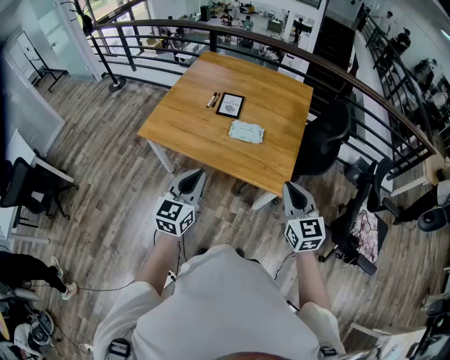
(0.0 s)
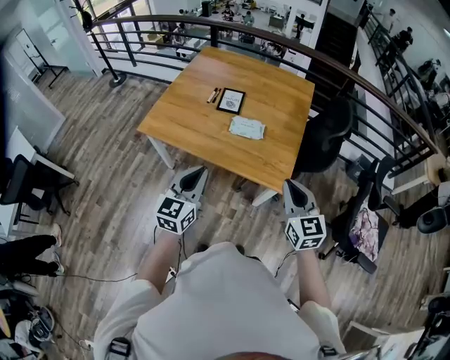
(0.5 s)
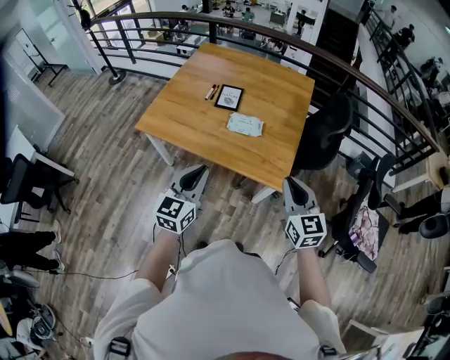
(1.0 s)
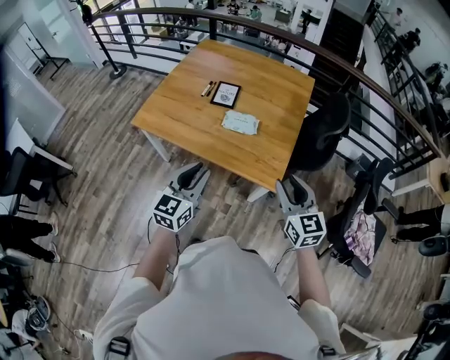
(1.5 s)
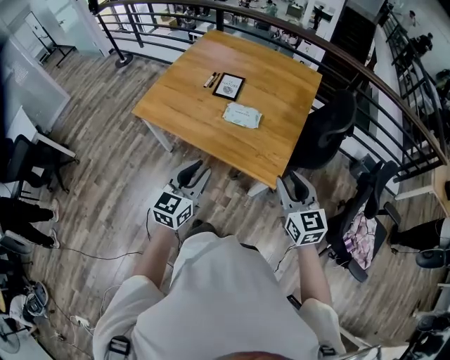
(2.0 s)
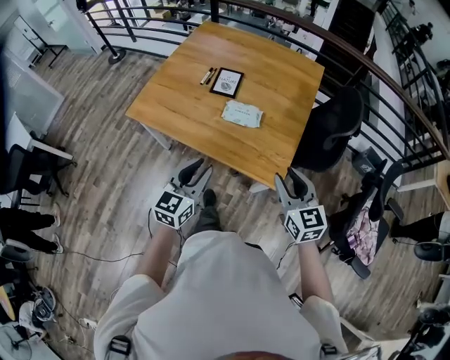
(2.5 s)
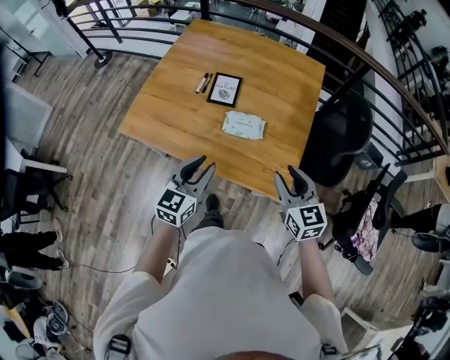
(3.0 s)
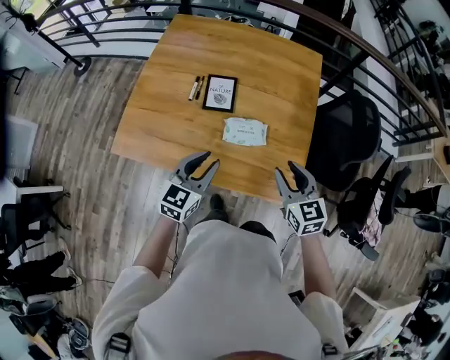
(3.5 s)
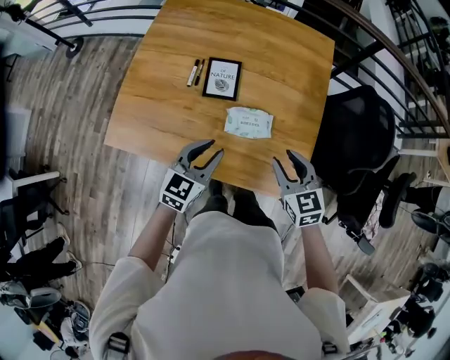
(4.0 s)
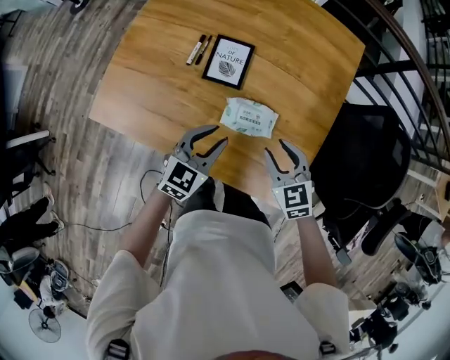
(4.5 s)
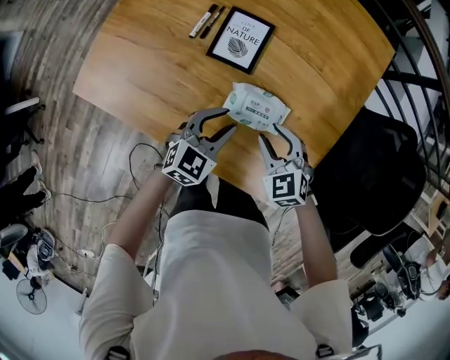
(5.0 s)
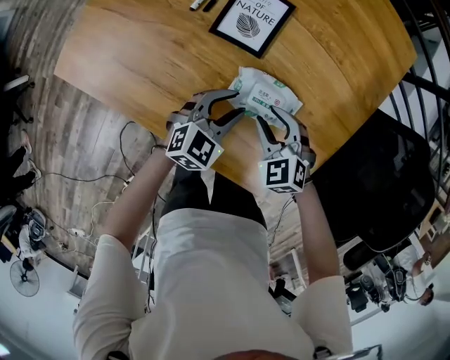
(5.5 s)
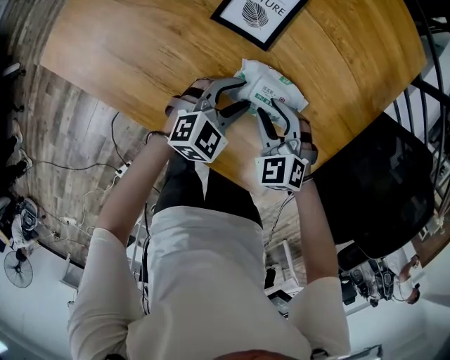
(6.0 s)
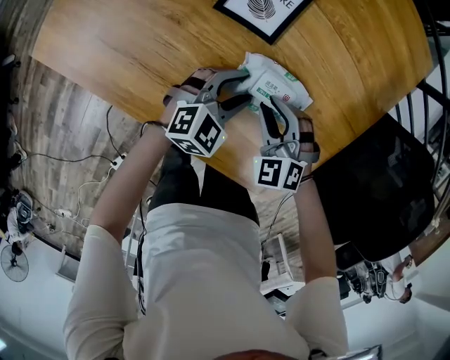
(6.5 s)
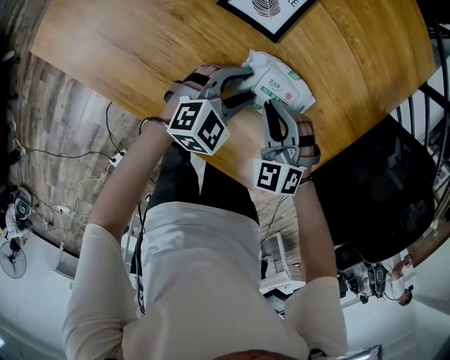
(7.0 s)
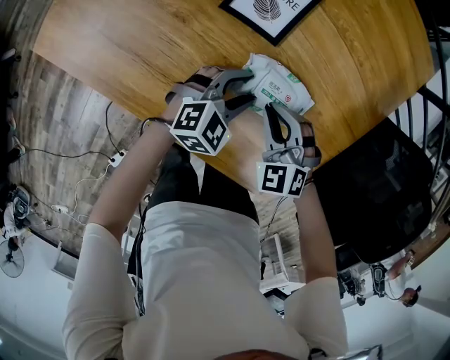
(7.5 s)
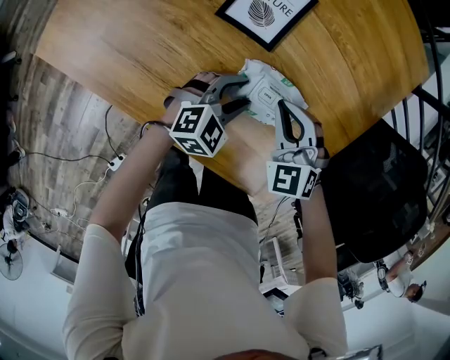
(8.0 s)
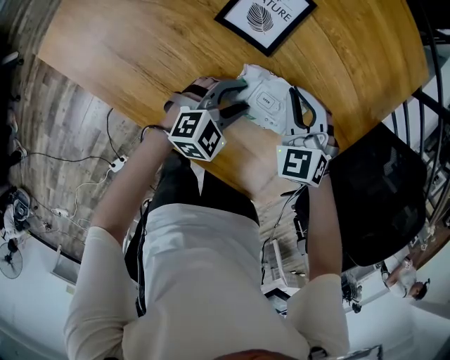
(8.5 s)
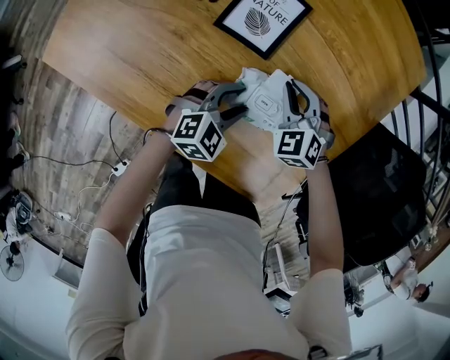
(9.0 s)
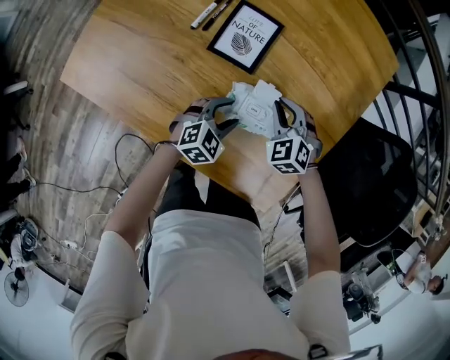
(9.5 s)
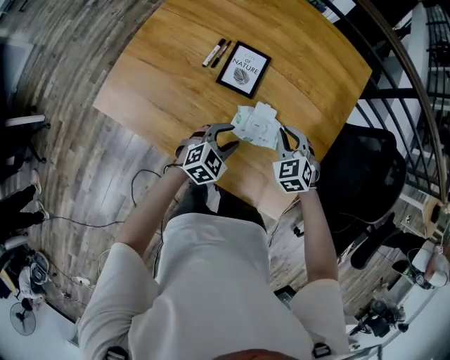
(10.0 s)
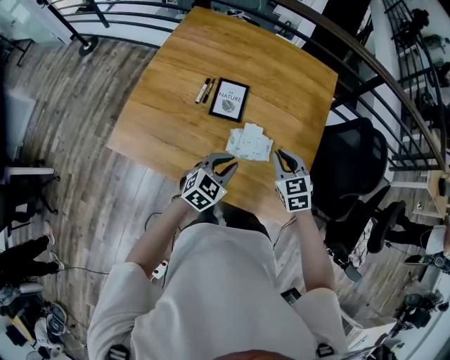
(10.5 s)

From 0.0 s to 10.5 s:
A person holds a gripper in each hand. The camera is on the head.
From 0.0 s to 2.0 s: Both grippers travel together to the right, approximately 10 cm. The right gripper opens its fingers. Meanwhile the left gripper opens its fingers.
From 2.0 s to 4.0 s: The left gripper travels forward by some 30 cm, and changes its angle by approximately 20 degrees, while the right gripper heads forward and to the left, covering some 30 cm.
From 4.0 s to 6.5 s: The two grippers go some 30 cm downward. The right gripper rolls counterclockwise, seen from behind, by approximately 50 degrees.
From 6.5 s to 8.5 s: The right gripper shifts approximately 10 cm forward, and closes its fingers.
From 8.5 s to 10.5 s: Both grippers move upward and backward, some 25 cm. The left gripper closes up; the right gripper changes its angle by about 40 degrees.

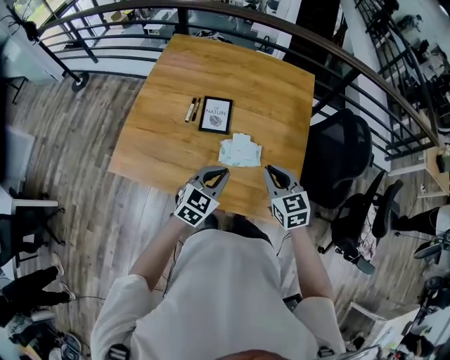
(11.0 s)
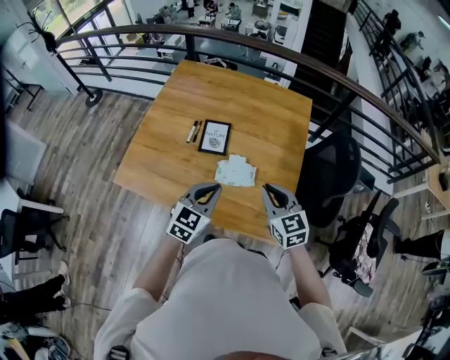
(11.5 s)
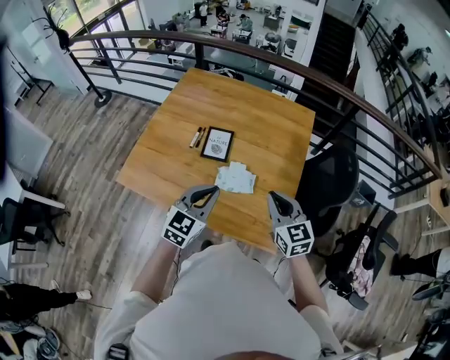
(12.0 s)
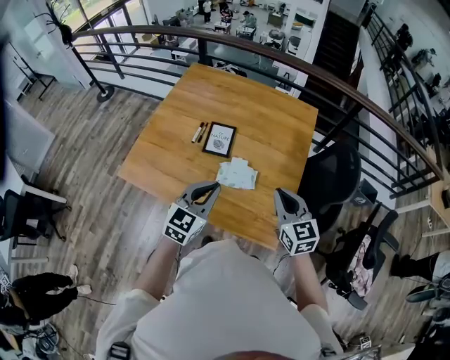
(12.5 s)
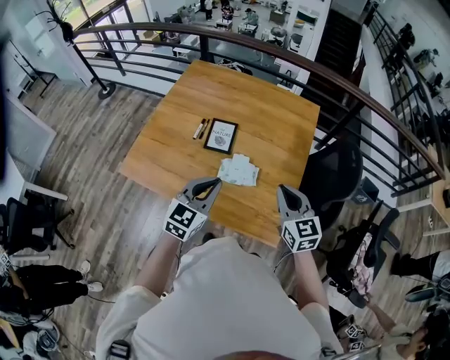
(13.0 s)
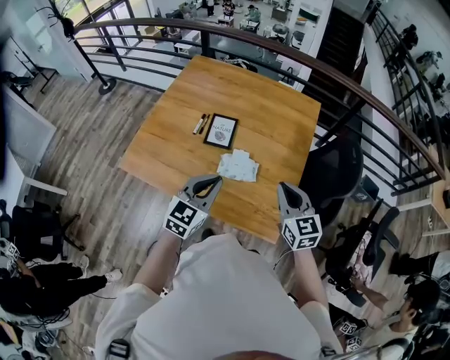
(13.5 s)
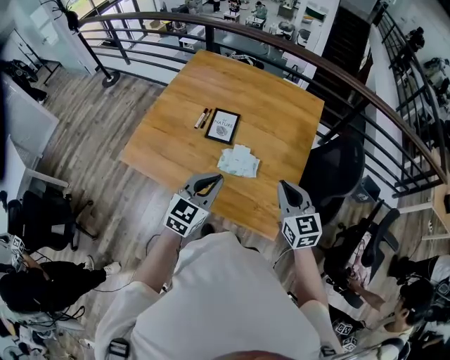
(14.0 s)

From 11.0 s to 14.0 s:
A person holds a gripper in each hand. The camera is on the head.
From 11.0 s to 12.5 s: The left gripper heads upward, covering about 10 cm; the right gripper goes roughly 10 cm to the right and upward.
From 12.5 s to 14.0 s: The grippers make only small movements.

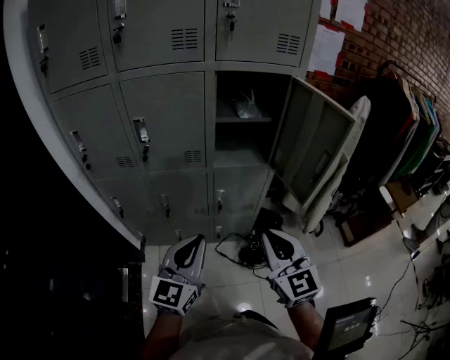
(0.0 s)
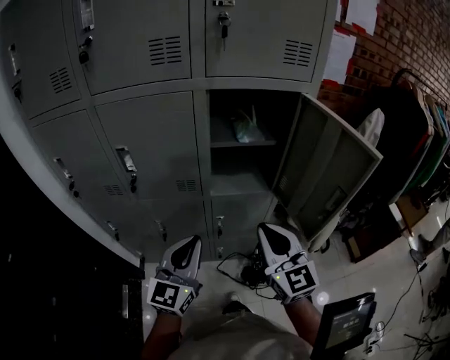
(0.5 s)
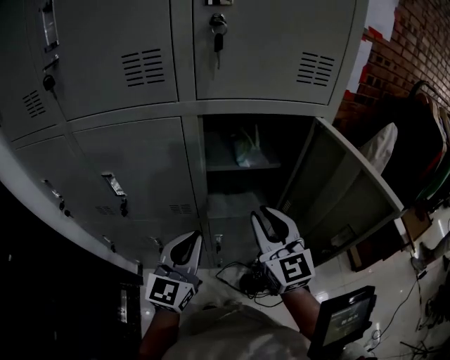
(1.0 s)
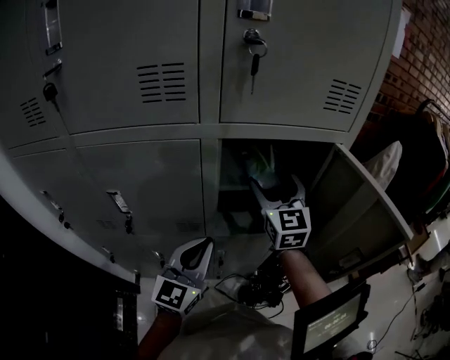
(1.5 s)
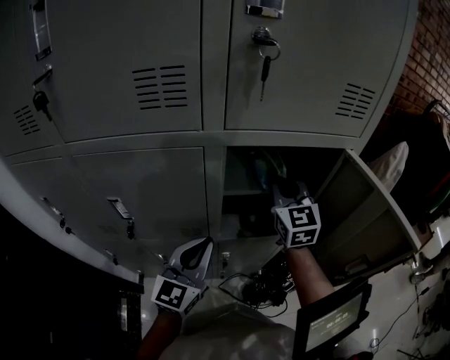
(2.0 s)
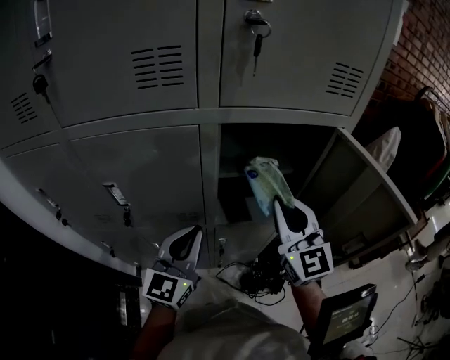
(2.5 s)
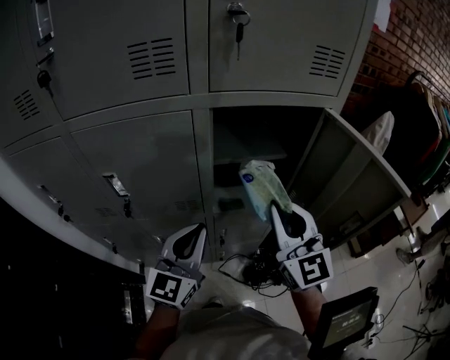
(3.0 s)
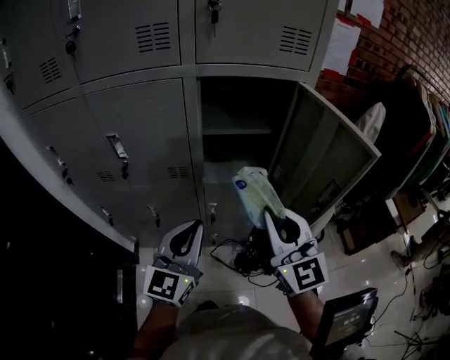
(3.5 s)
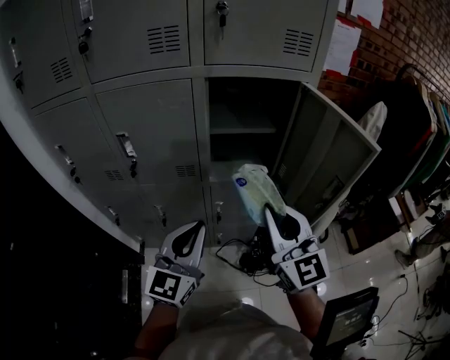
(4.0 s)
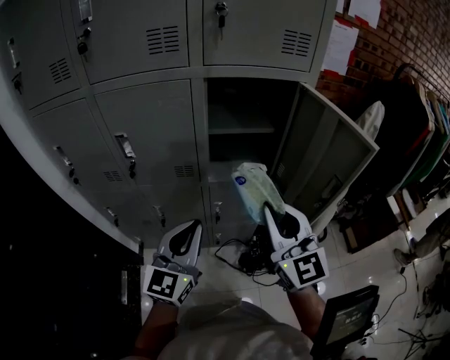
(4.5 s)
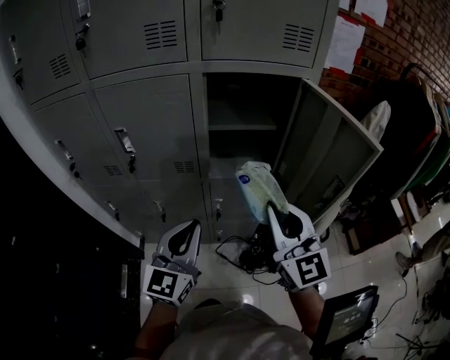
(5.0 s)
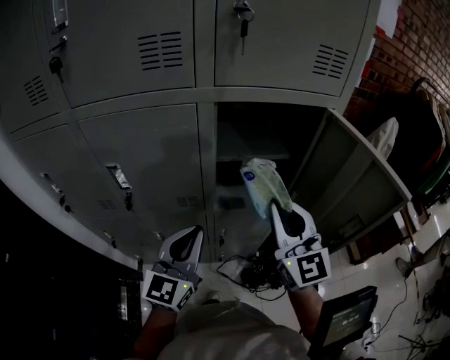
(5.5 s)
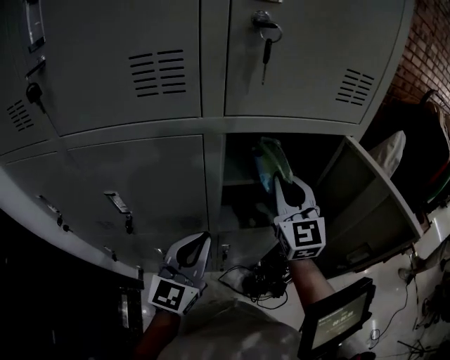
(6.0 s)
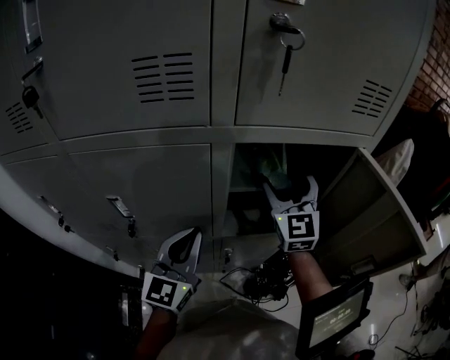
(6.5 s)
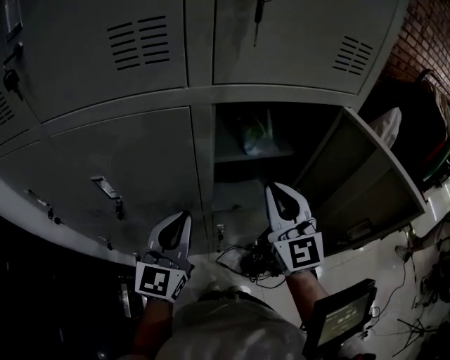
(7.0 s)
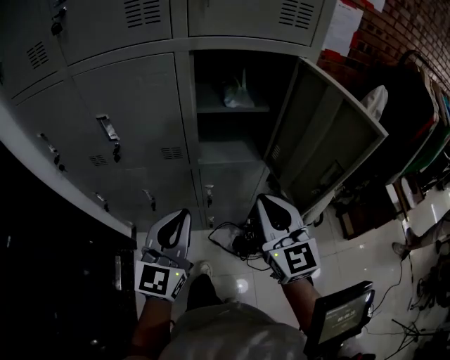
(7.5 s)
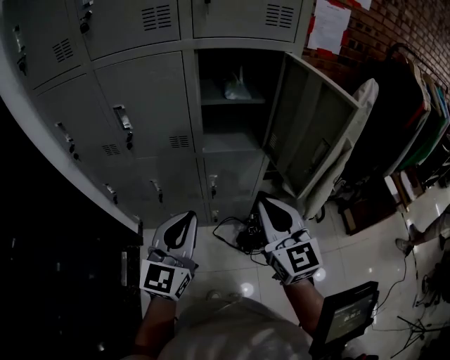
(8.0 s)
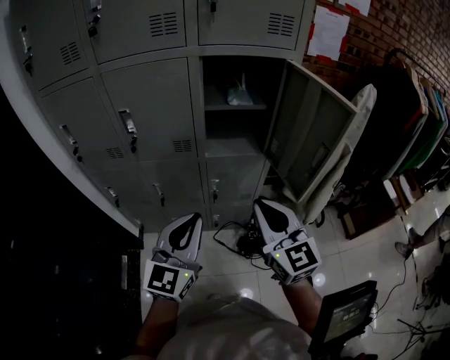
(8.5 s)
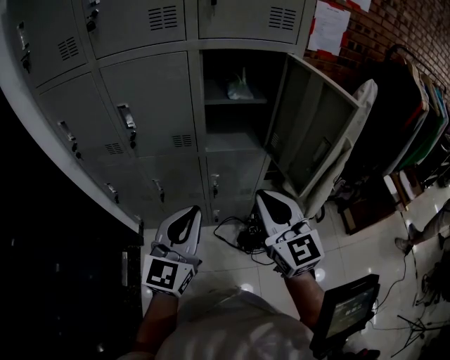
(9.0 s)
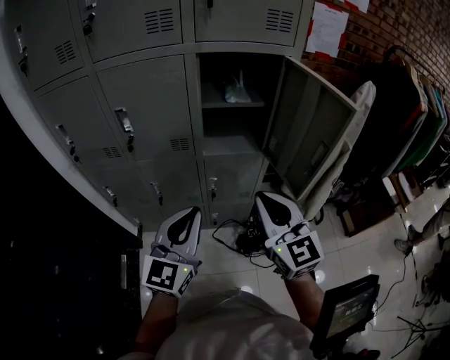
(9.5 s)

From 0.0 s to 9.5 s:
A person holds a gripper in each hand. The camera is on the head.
From 0.0 s to 2.0 s: The two grippers go some 40 cm forward. The right gripper opens, then closes once more.
From 2.0 s to 4.0 s: The right gripper goes roughly 30 cm backward; the left gripper heads backward, covering approximately 20 cm.
From 4.0 s to 5.5 s: The two grippers go approximately 10 cm forward.
From 5.5 s to 7.5 s: The left gripper shifts some 10 cm backward. Meanwhile the right gripper moves downward, approximately 5 cm, moves some 20 cm forward and comes back, and opens and closes again.
From 7.5 s to 9.5 s: Both grippers move backward, approximately 10 cm.

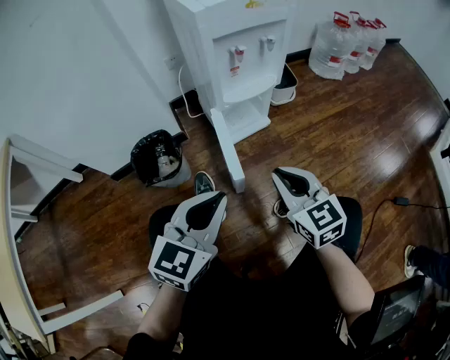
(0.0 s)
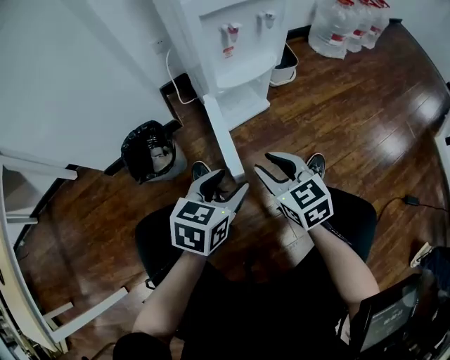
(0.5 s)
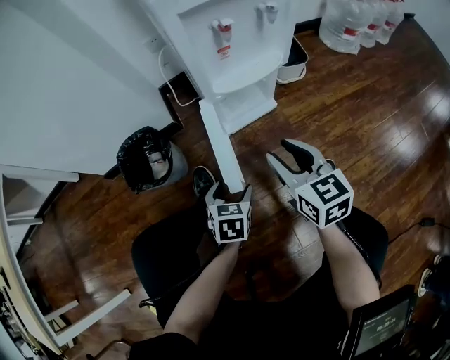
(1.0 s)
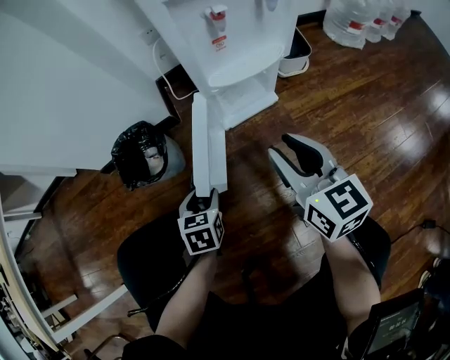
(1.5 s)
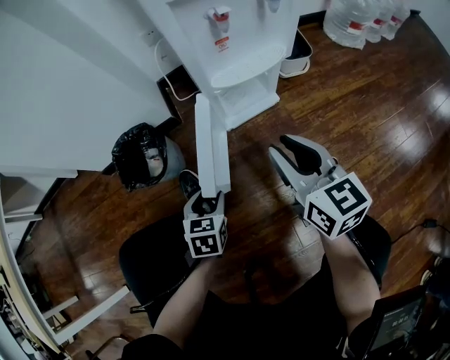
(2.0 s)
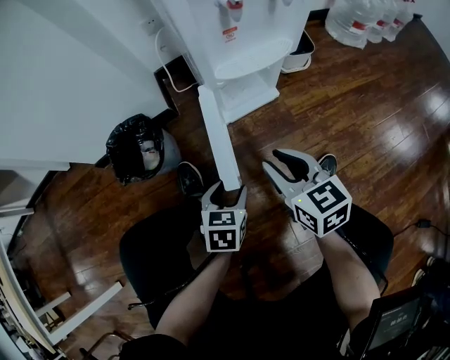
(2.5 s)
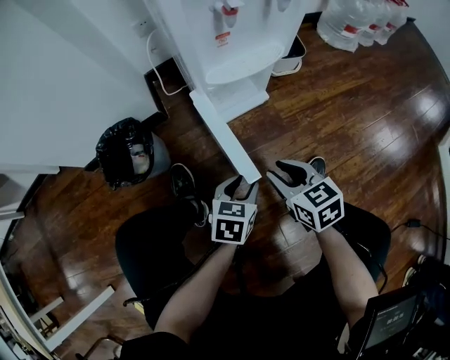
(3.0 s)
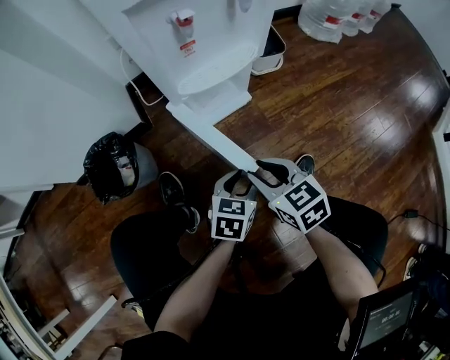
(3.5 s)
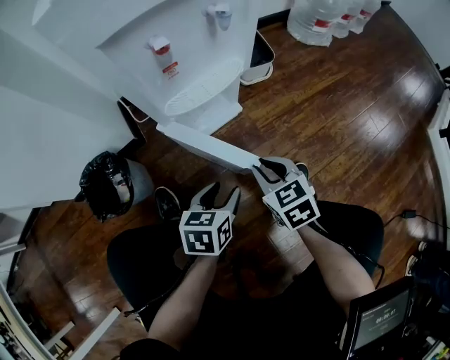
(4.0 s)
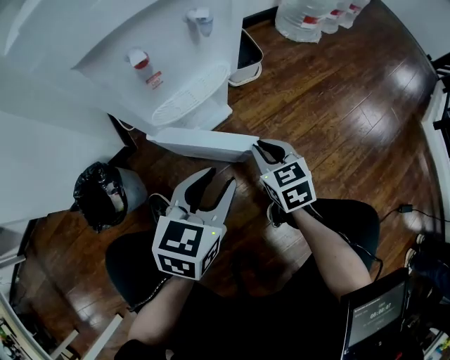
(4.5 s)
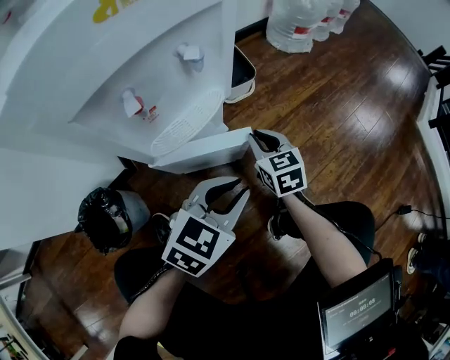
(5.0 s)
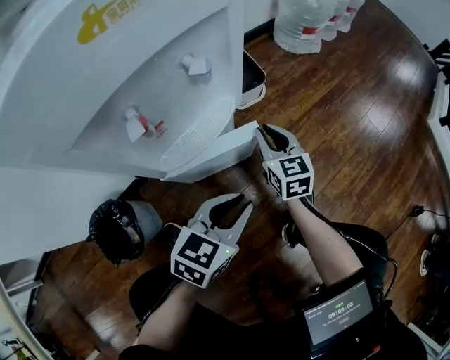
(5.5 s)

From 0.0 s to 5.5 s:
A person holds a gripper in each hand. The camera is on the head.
From 0.0 s to 2.0 s: The right gripper shifts about 15 cm forward, and opens; the left gripper goes about 30 cm downward, points its fingers about 30 degrees further downward, and opens.
From 2.0 s to 3.5 s: The left gripper goes some 20 cm to the right, and rotates about 30 degrees. Meanwhile the right gripper heads downward, covering about 15 cm, and swivels some 20 degrees.
From 3.5 s to 5.5 s: The right gripper changes place by approximately 25 cm, and rotates roughly 40 degrees, while the left gripper shifts some 10 cm upward, and changes its angle by some 30 degrees.
